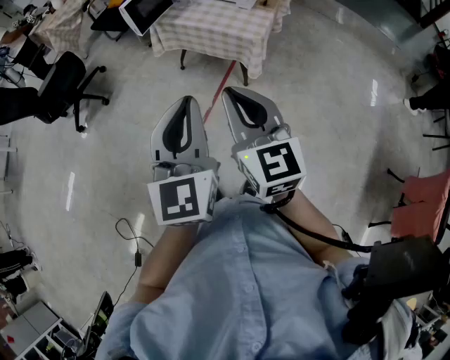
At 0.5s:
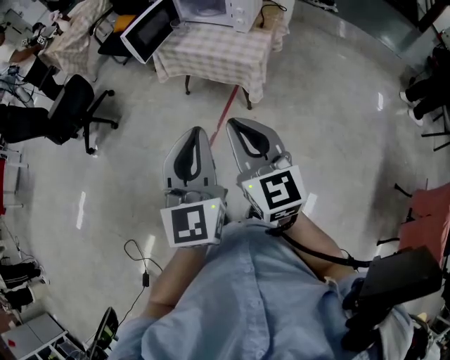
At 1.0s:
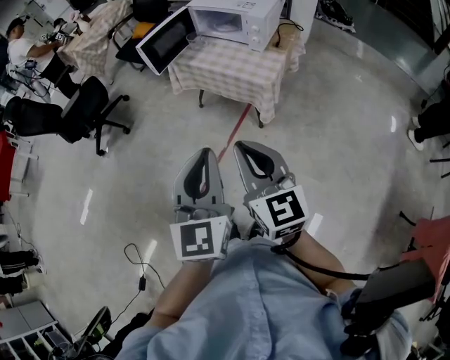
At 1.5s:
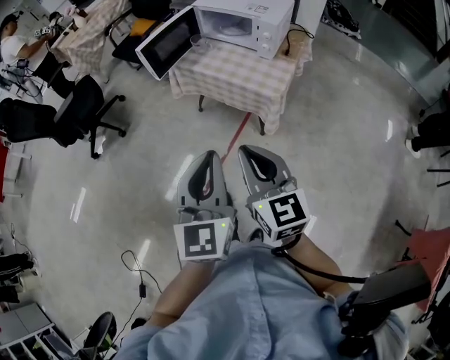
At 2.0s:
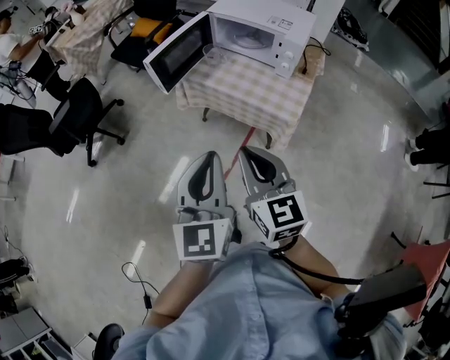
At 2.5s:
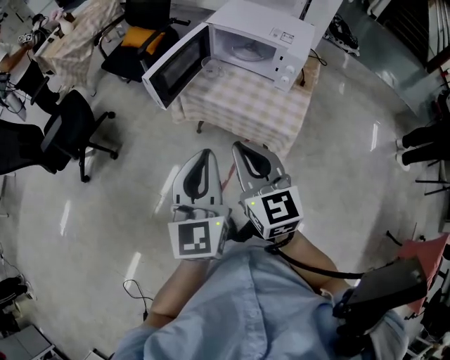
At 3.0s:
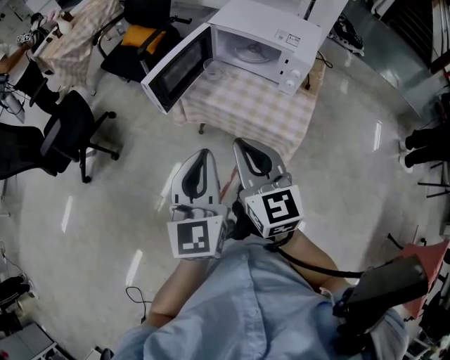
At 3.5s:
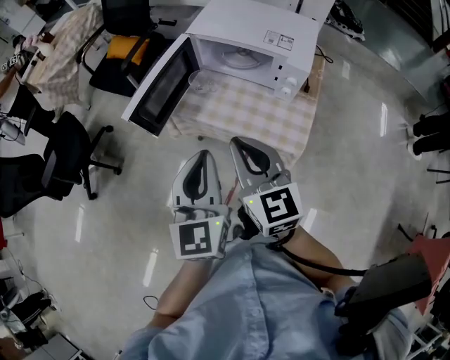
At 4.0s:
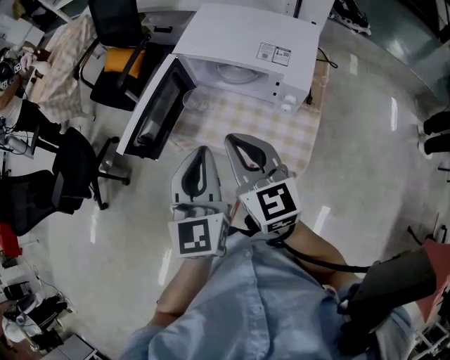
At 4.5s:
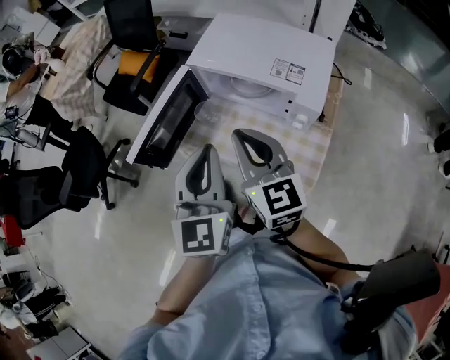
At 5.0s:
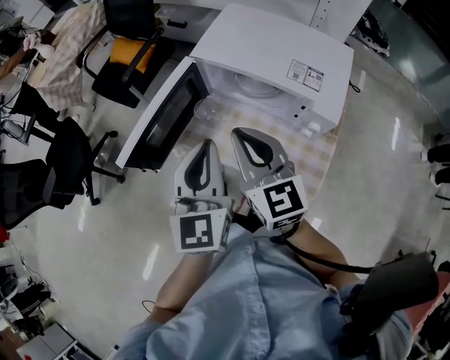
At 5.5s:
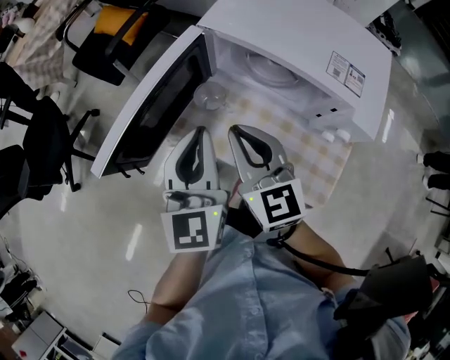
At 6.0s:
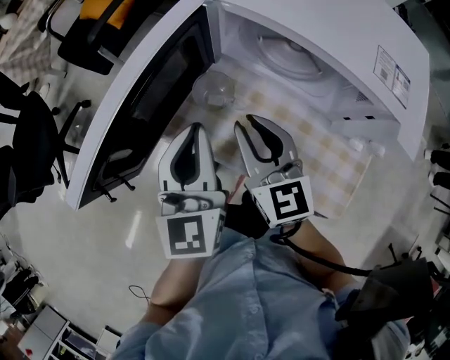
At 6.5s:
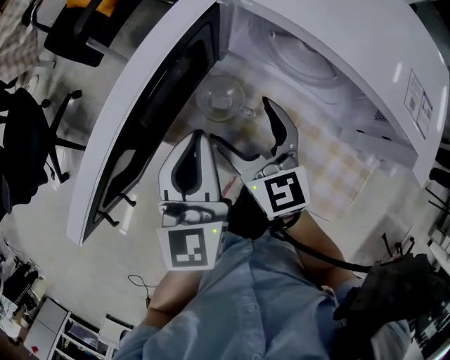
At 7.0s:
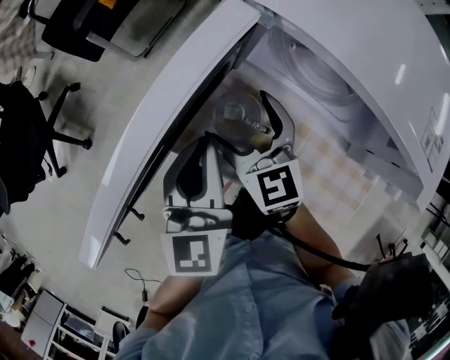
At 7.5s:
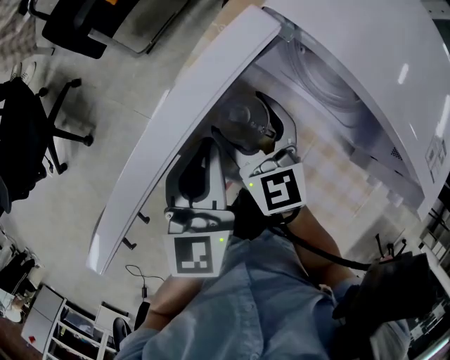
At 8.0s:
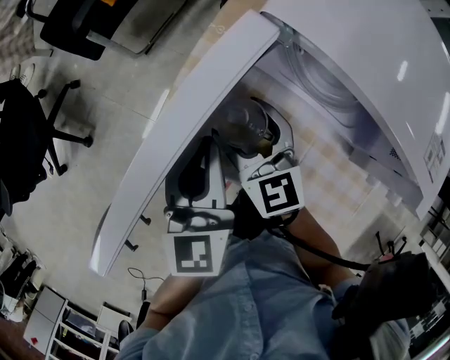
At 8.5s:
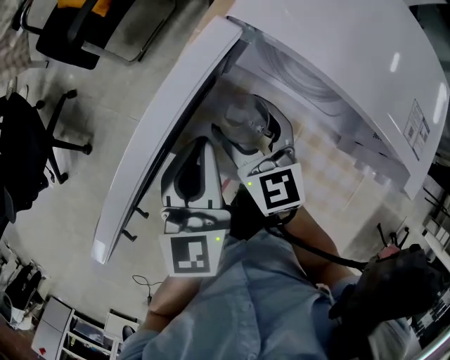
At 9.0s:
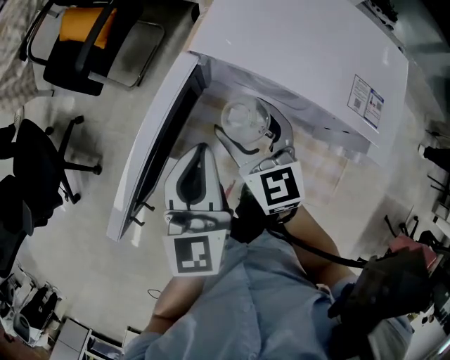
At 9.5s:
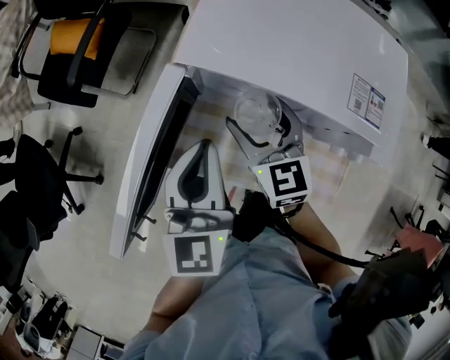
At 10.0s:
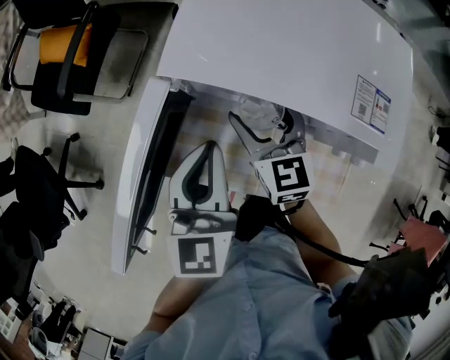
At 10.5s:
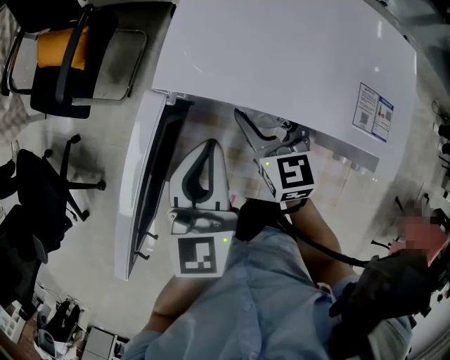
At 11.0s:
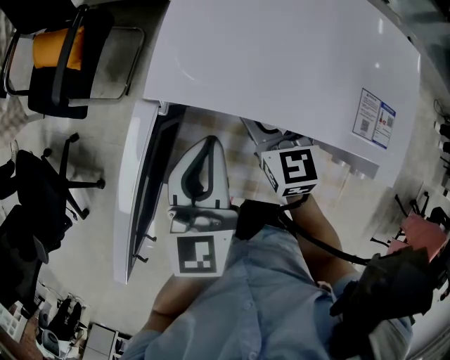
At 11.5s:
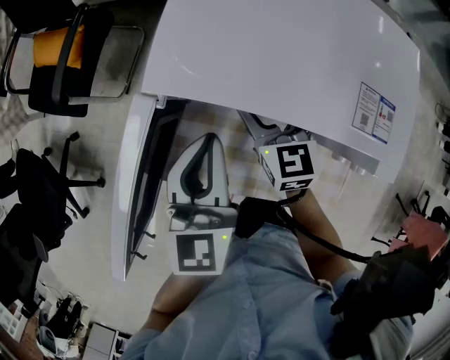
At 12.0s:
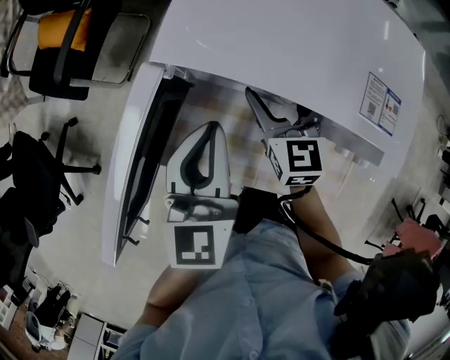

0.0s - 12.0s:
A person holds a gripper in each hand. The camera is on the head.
0.0s - 2.0s: Both grippers move forward, roughly 25 cm.
2.0s - 4.0s: Both grippers travel together forward, roughly 30 cm.
4.0s - 6.0s: Both grippers travel together downward and forward, some 30 cm.
6.0s - 8.0s: The left gripper moves forward and downward, about 10 cm. Meanwhile the right gripper travels forward, downward and to the left by approximately 10 cm, and opens.
8.0s - 10.0s: Both grippers move to the right and upward, about 15 cm. The right gripper turns by roughly 30 degrees.
10.0s - 12.0s: The grippers make only small movements.

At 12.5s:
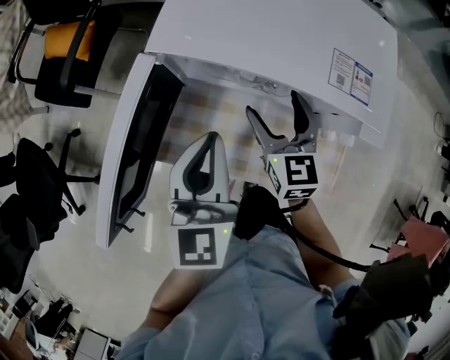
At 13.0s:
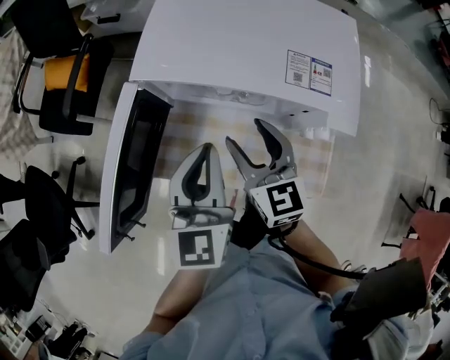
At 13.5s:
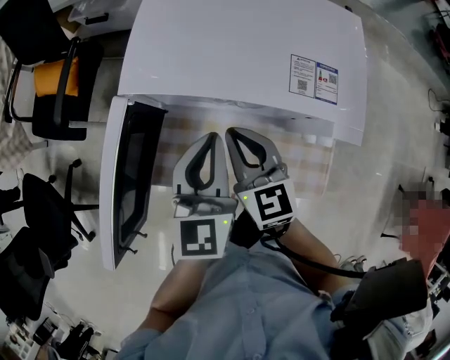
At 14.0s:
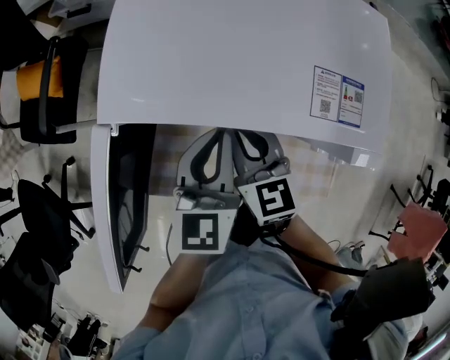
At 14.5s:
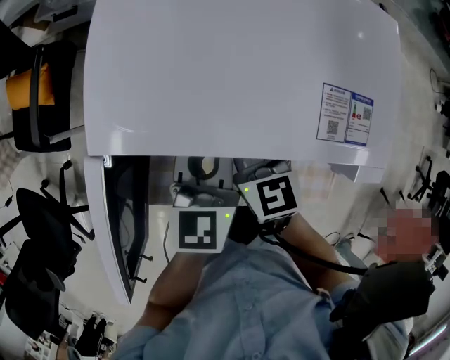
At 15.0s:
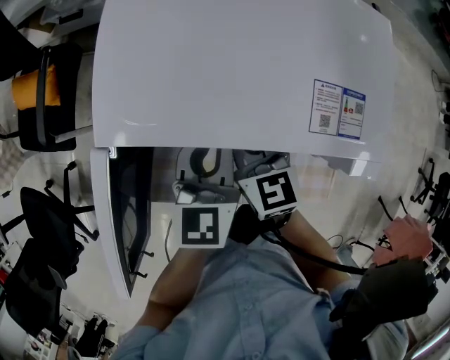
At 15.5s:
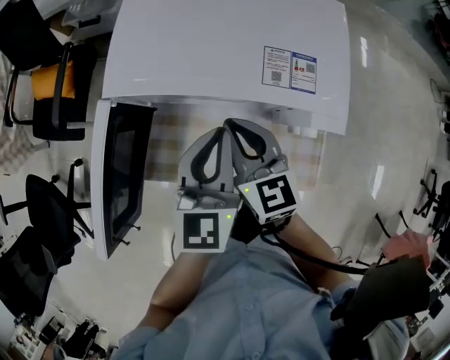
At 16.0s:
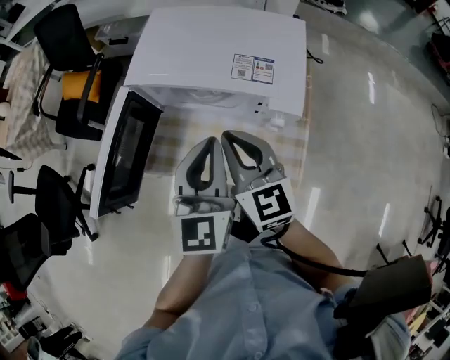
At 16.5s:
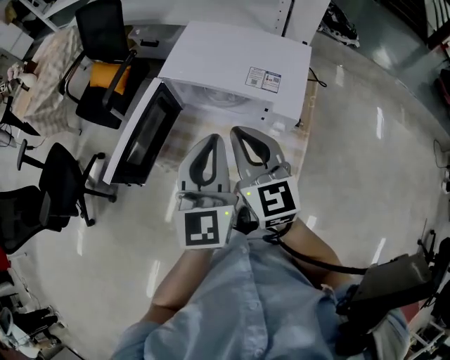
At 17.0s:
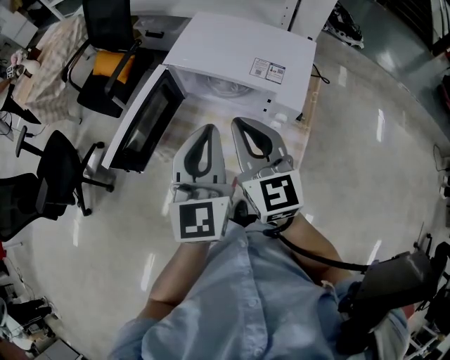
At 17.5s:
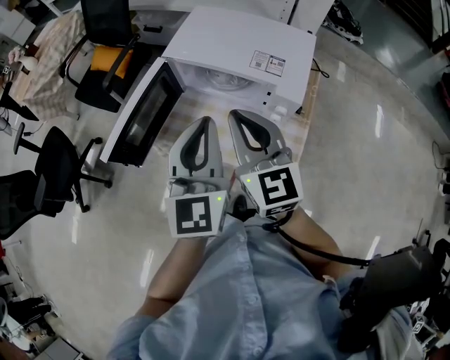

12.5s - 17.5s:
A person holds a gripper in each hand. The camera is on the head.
12.5s - 15.0s: The left gripper heads forward, to the right and downward, covering some 15 cm, while the right gripper shifts by about 5 cm, and closes its fingers.
15.0s - 17.5s: The two grippers go about 35 cm upward and backward. The right gripper rotates some 30 degrees. Meanwhile the left gripper turns by about 30 degrees.

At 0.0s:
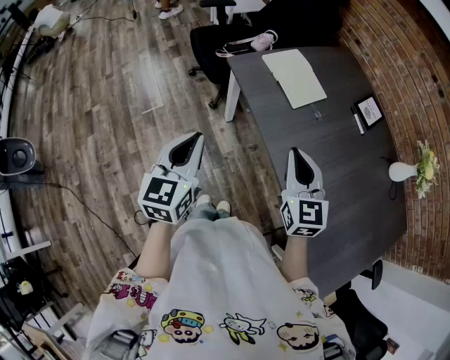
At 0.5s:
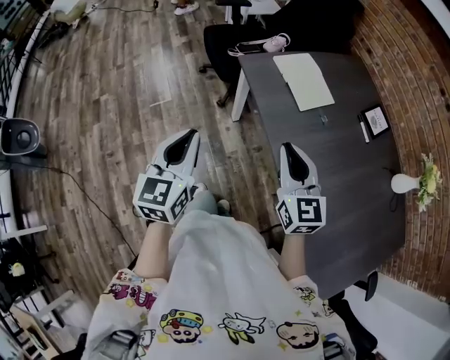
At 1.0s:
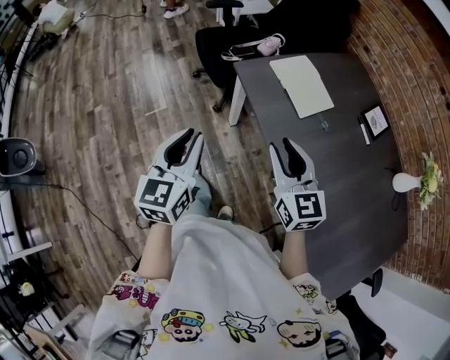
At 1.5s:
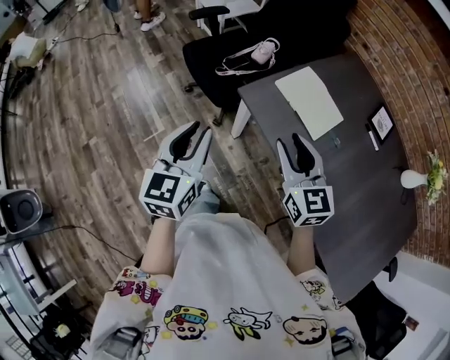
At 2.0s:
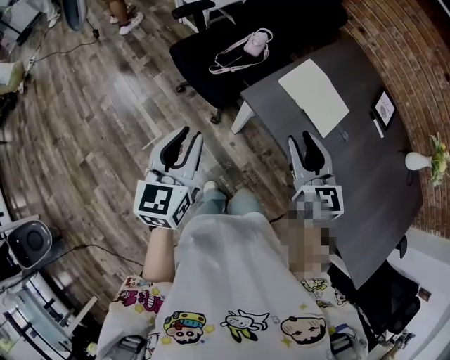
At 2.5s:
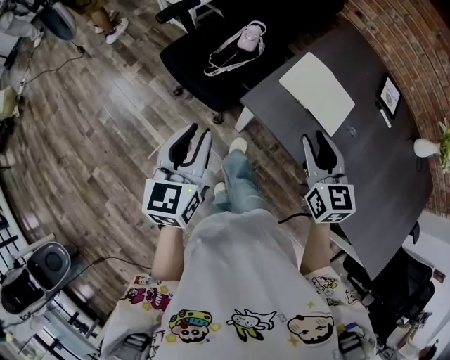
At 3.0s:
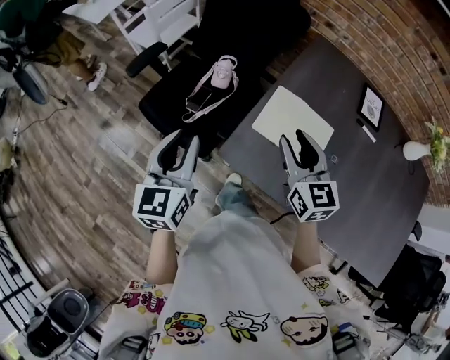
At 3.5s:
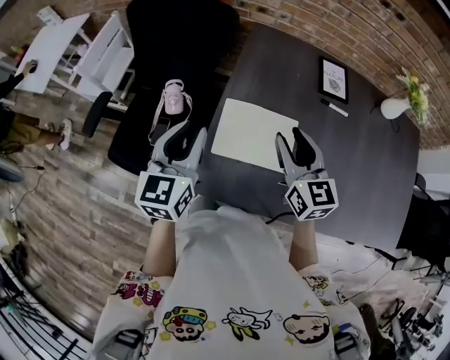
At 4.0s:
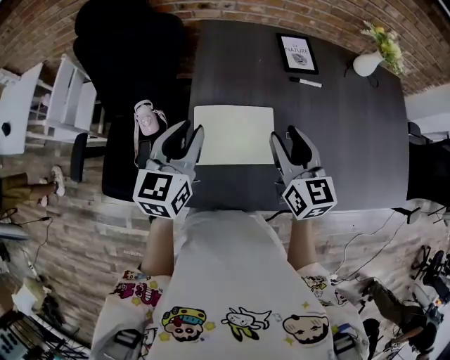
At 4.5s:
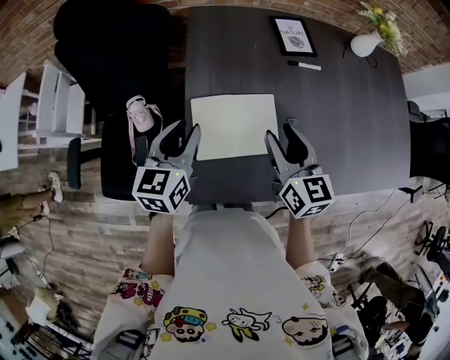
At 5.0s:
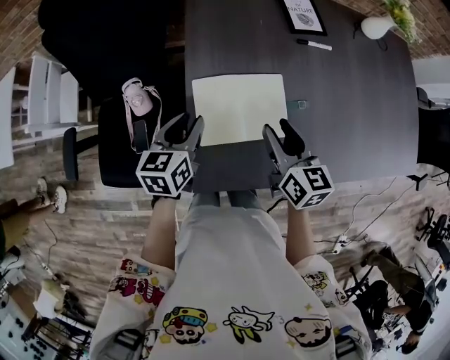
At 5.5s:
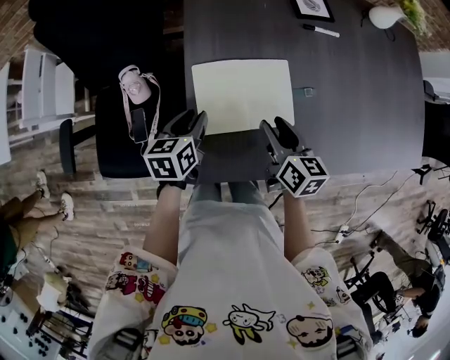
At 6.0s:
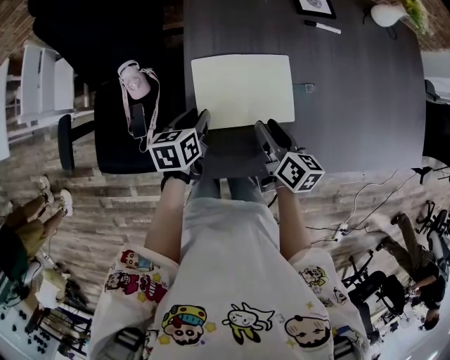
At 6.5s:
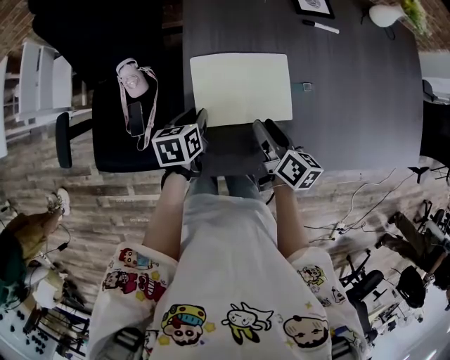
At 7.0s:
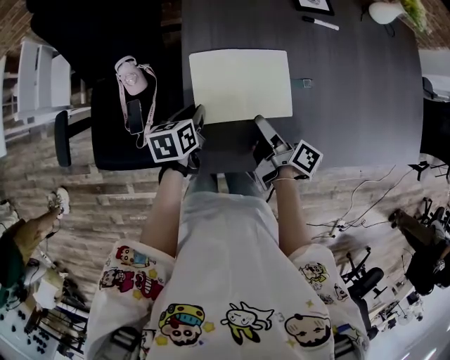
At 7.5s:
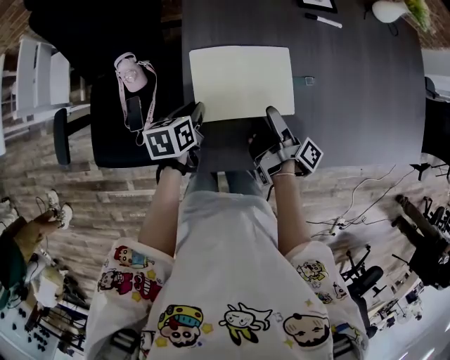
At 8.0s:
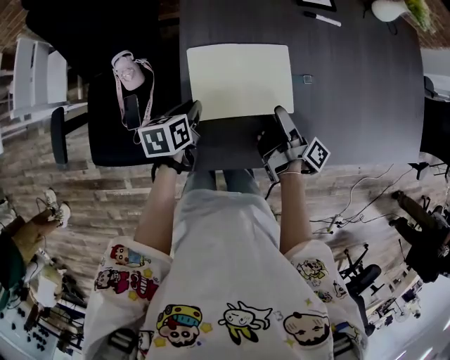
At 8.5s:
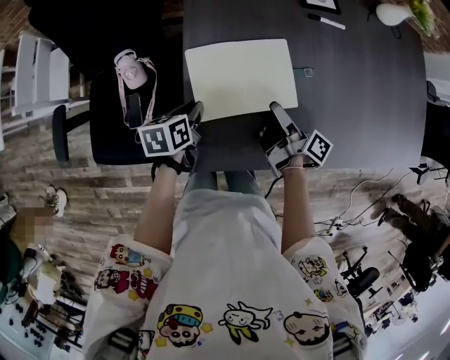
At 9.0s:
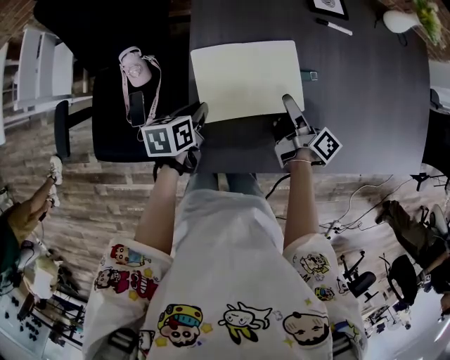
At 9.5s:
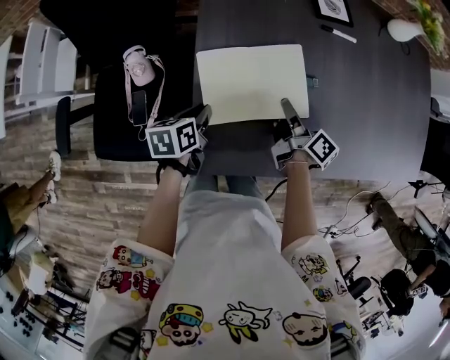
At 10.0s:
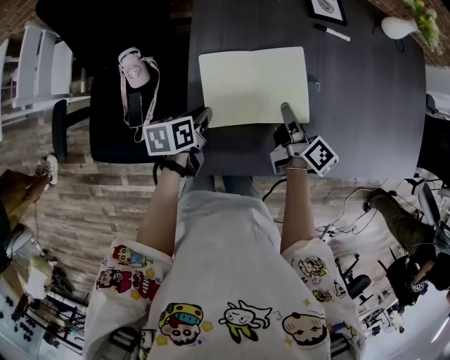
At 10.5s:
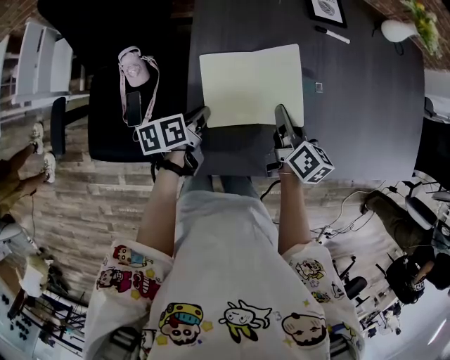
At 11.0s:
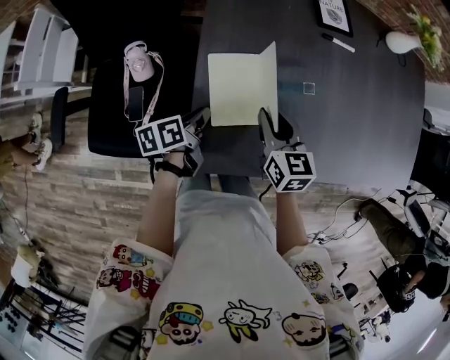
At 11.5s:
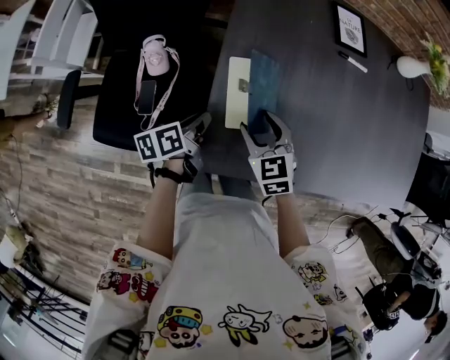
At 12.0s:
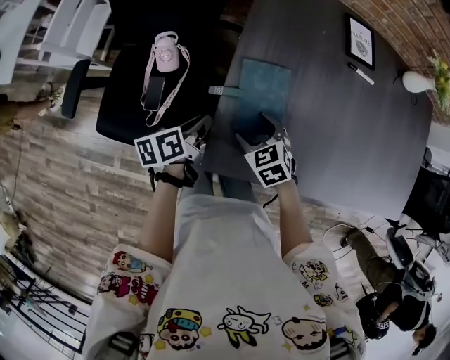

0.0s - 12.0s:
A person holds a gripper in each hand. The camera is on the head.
0.0s - 2.0s: Both grippers travel together forward and to the left, about 30 cm. The right gripper opens its fingers. The left gripper opens up.
2.0s - 4.0s: The right gripper changes place by about 30 cm, and changes its angle by roughly 50 degrees. Meanwhile the left gripper ends up roughly 50 cm from where it was, and changes its angle by roughly 50 degrees.
4.0s - 6.0s: Both grippers move downward, about 20 cm. The right gripper changes its angle by roughly 40 degrees. Meanwhile the left gripper swivels some 40 degrees.
6.0s - 8.0s: The right gripper rotates around the line of its fingers by roughly 50 degrees, clockwise from behind, and opens up.
8.0s - 10.0s: The right gripper swivels roughly 40 degrees, and closes its fingers.
10.0s - 12.0s: The left gripper heads to the left, covering roughly 5 cm, and rotates roughly 20 degrees. Meanwhile the right gripper travels to the left and backward by roughly 20 cm, twists approximately 80 degrees counterclockwise, seen from behind, and opens.
